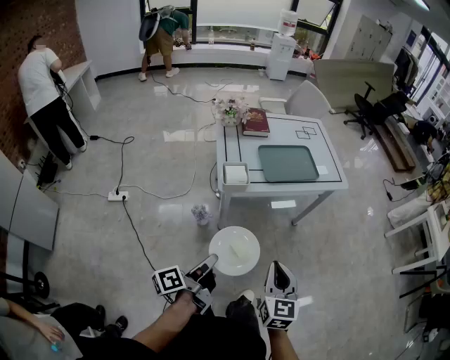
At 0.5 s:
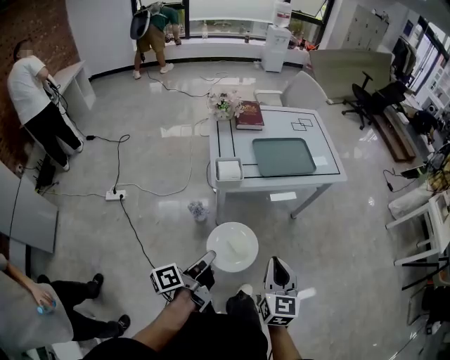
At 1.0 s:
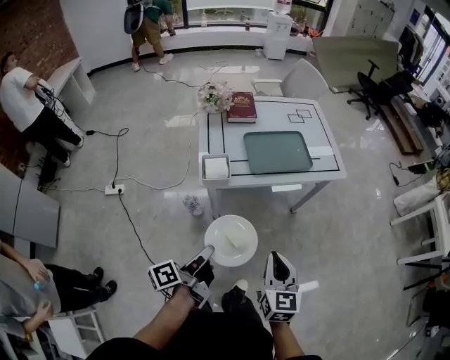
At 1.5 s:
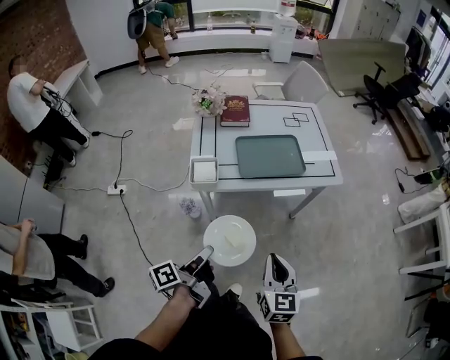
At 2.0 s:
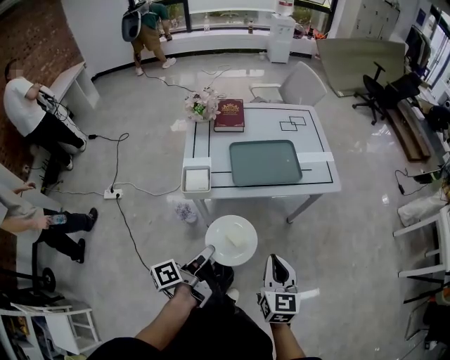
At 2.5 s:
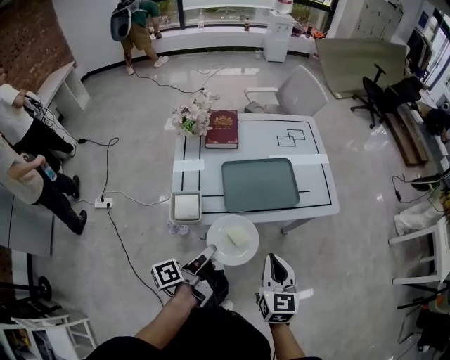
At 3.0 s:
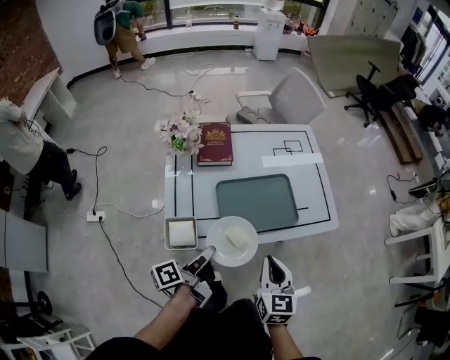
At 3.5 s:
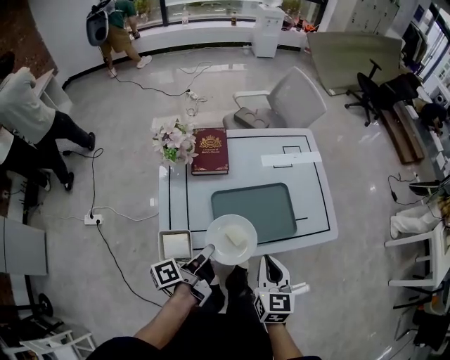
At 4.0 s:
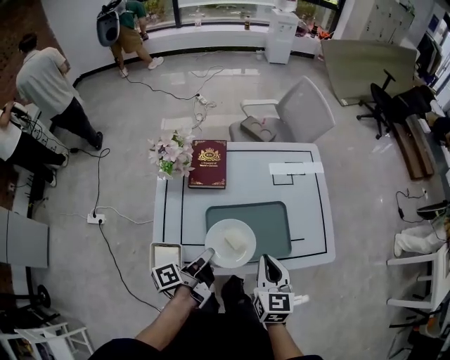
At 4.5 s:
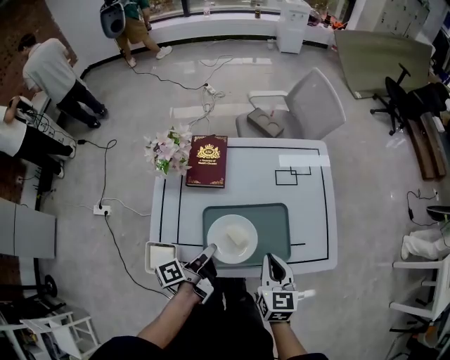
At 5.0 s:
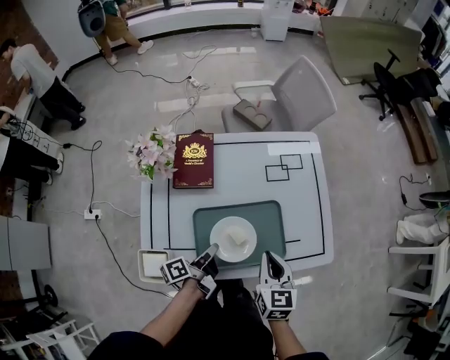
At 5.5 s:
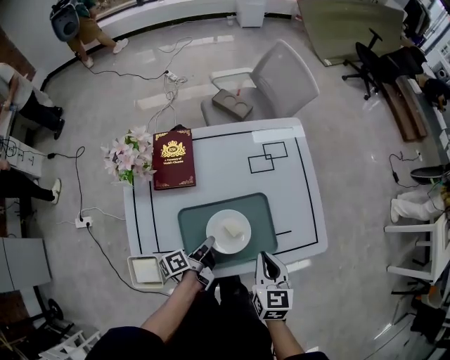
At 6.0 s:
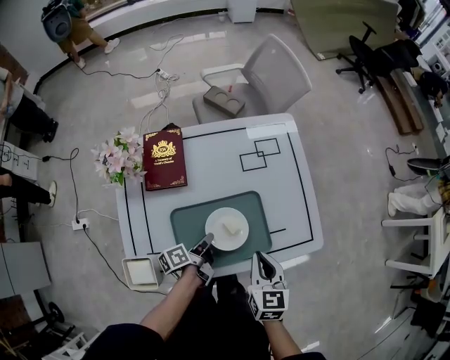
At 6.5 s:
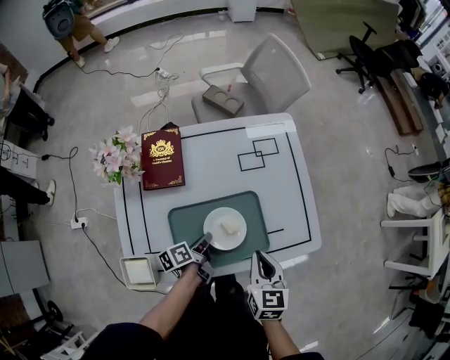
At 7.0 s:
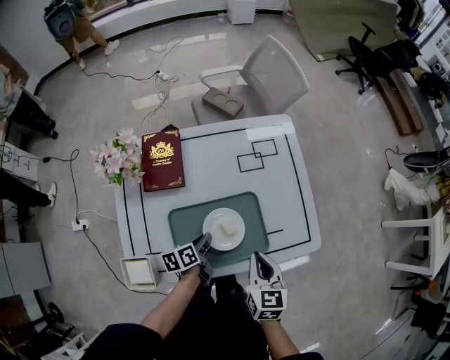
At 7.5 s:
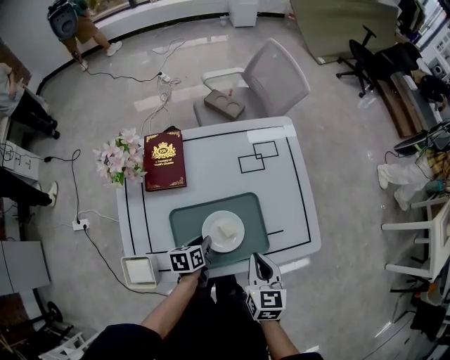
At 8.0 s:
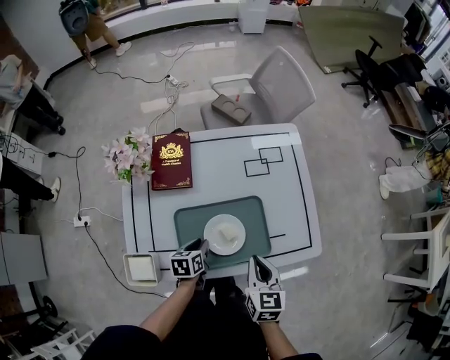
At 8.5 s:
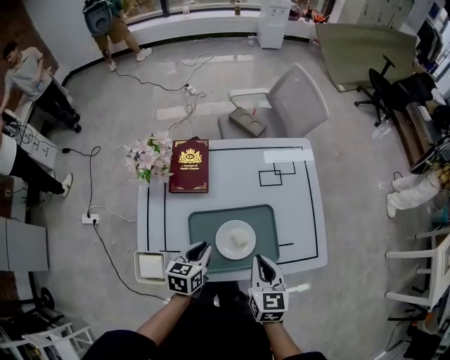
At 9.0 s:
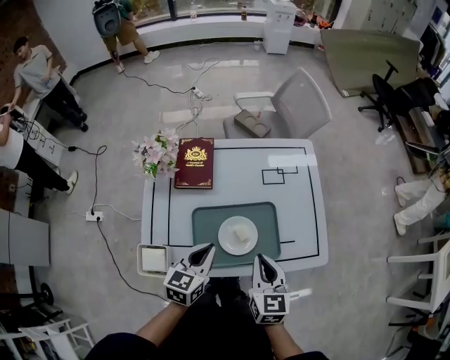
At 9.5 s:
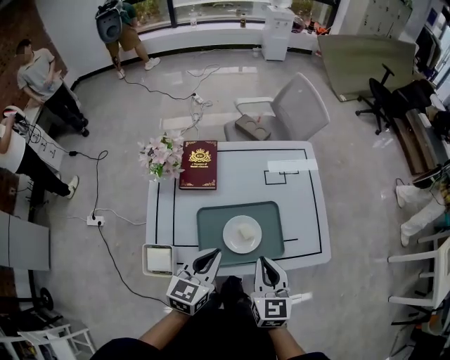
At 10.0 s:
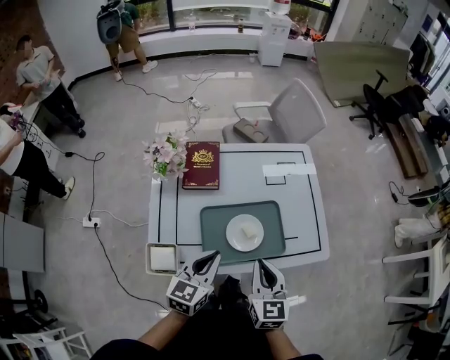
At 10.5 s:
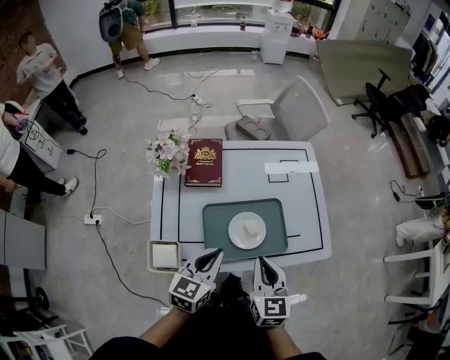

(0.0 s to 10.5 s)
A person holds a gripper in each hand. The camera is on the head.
0.0 s - 2.0 s: The right gripper changes place by some 25 cm.
2.0 s - 4.0 s: The right gripper changes place by approximately 35 cm.
4.0 s - 6.5 s: The right gripper shifts by approximately 10 cm.
6.5 s - 8.5 s: The right gripper changes place by roughly 5 cm.
8.5 s - 10.5 s: The right gripper shifts by about 10 cm.

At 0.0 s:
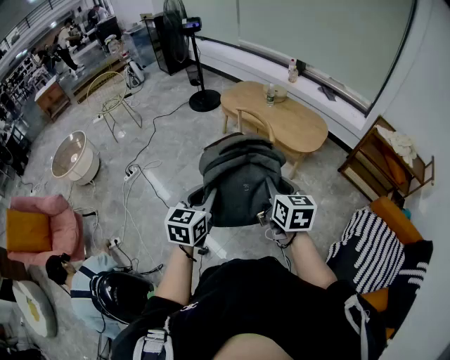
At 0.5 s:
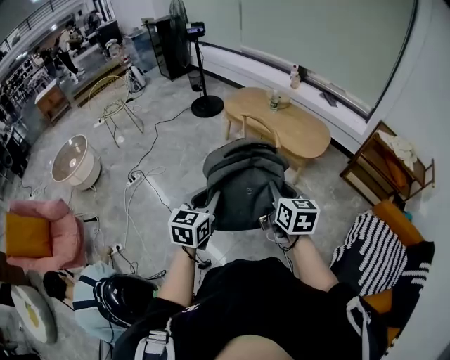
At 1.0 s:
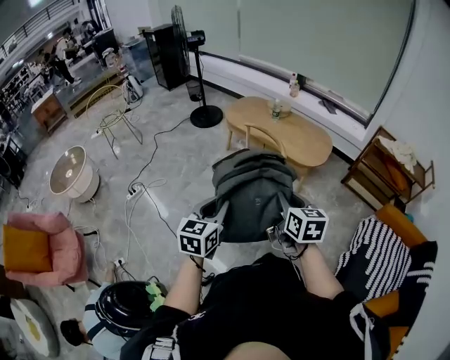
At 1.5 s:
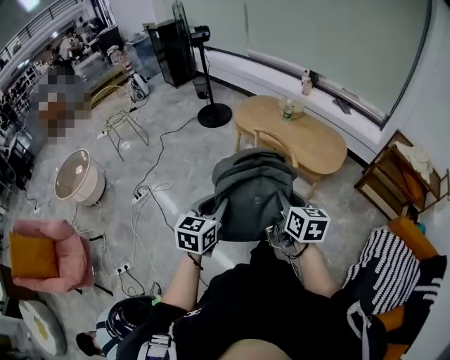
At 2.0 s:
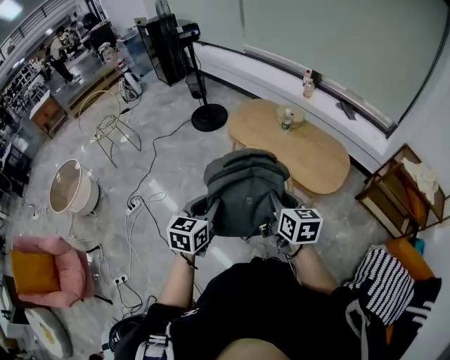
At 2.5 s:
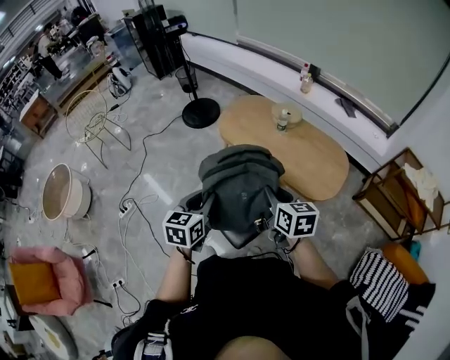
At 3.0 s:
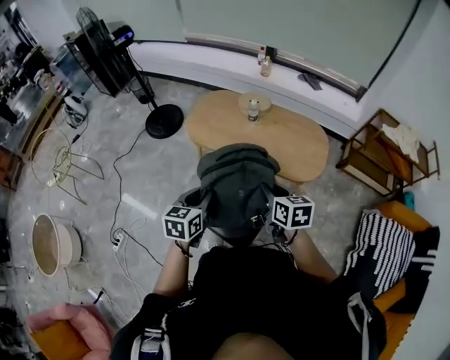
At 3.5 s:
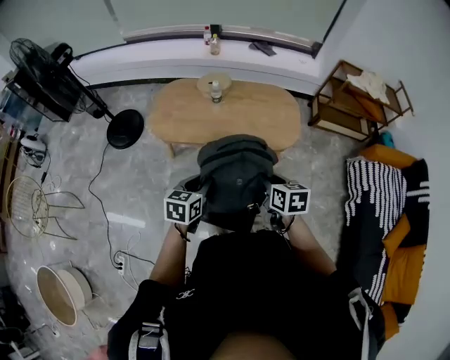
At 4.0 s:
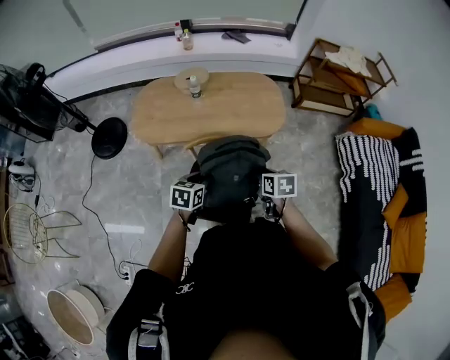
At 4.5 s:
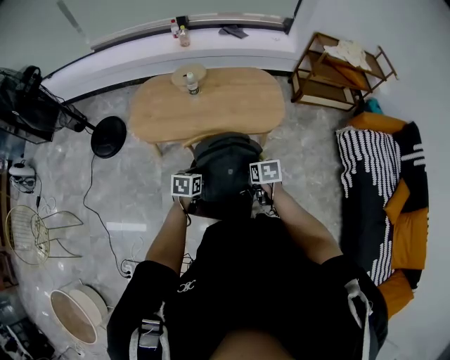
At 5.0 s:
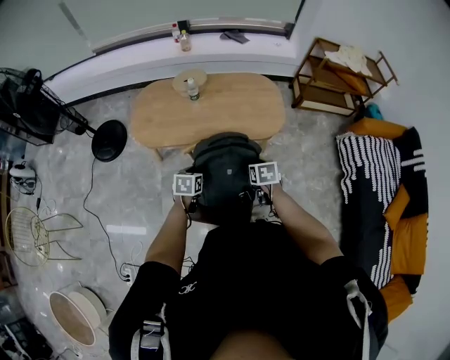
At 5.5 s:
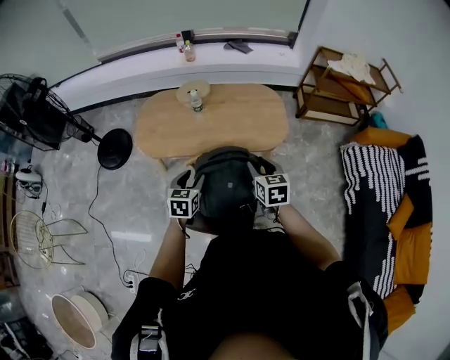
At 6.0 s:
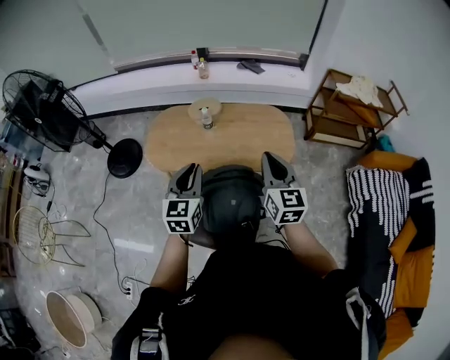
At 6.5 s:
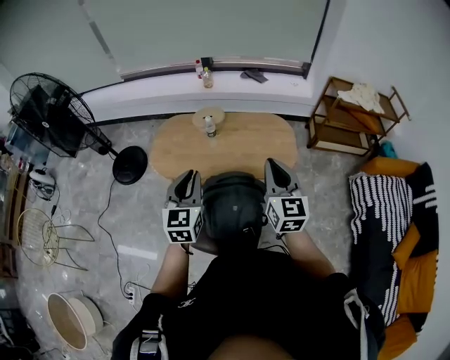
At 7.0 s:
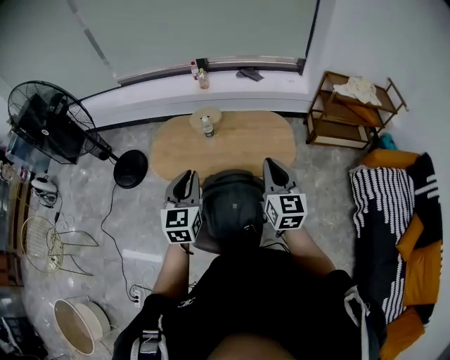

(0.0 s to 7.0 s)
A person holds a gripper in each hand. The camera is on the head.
0.0 s - 2.0 s: The pair of grippers is taken forward, some 40 cm.
2.0 s - 3.5 s: The right gripper moves roughly 25 cm, and changes its angle by some 40 degrees; the left gripper changes place by approximately 35 cm, and rotates about 40 degrees.
3.5 s - 5.0 s: Both grippers move downward and forward, about 15 cm. The right gripper swivels roughly 20 degrees, and opens up.
5.0 s - 7.0 s: The grippers both shift upward by about 30 cm. The right gripper tips its fingers upward by some 50 degrees, and closes up; the left gripper angles its fingers upward, by approximately 40 degrees, and closes.

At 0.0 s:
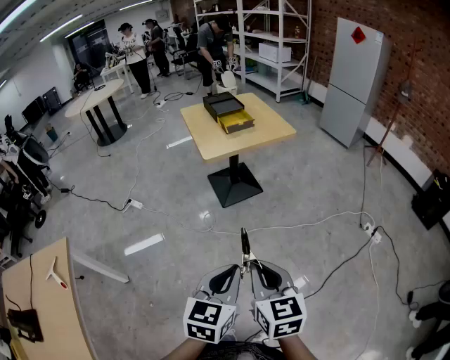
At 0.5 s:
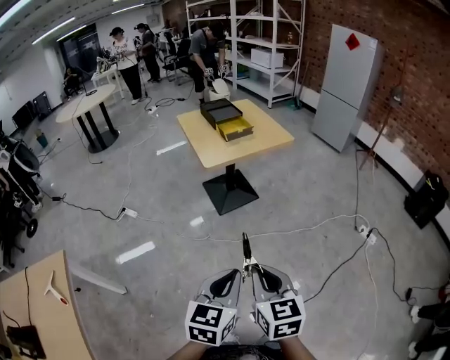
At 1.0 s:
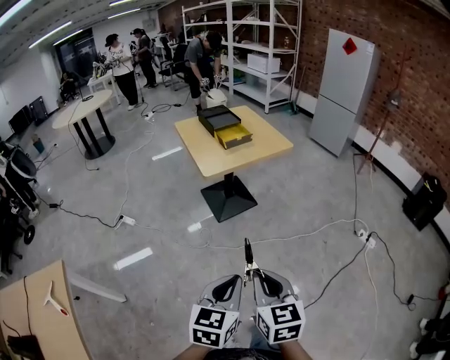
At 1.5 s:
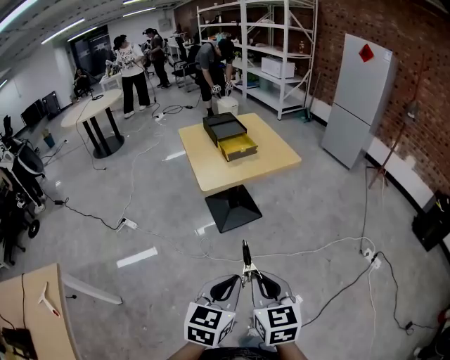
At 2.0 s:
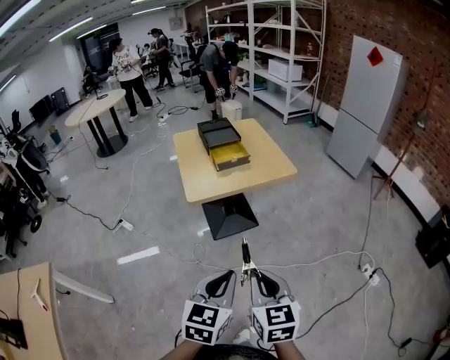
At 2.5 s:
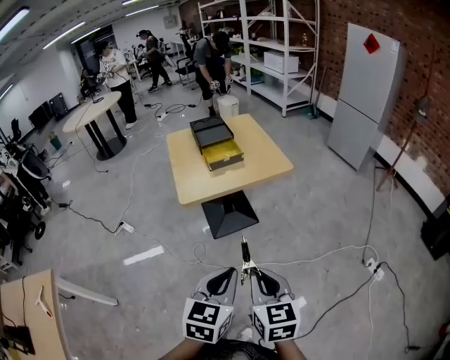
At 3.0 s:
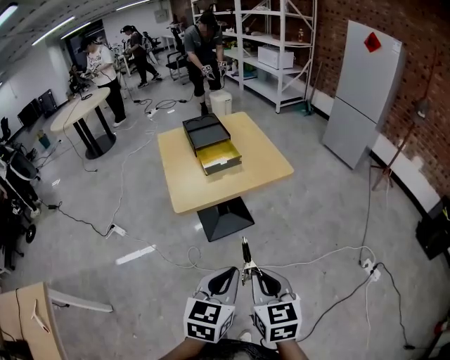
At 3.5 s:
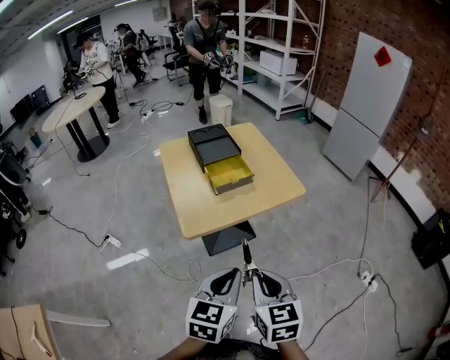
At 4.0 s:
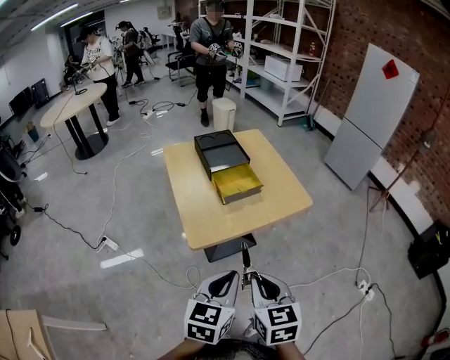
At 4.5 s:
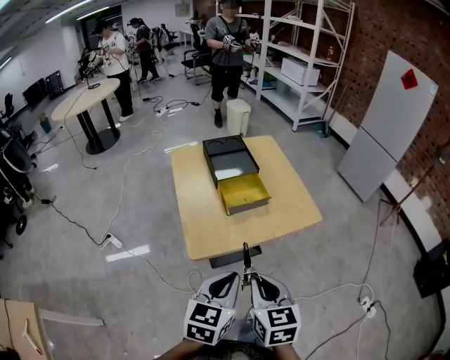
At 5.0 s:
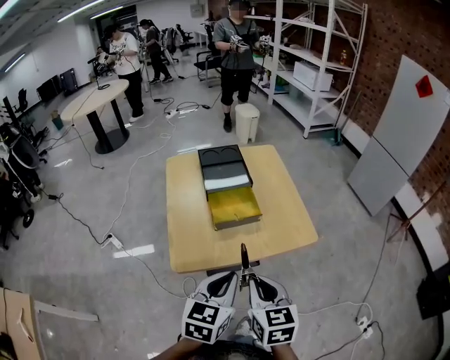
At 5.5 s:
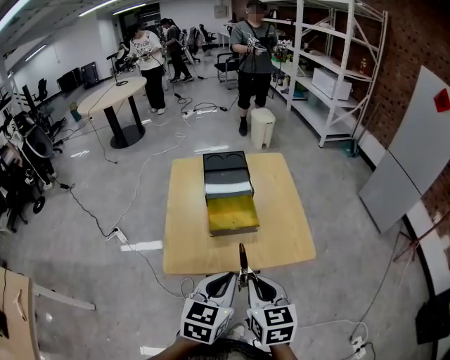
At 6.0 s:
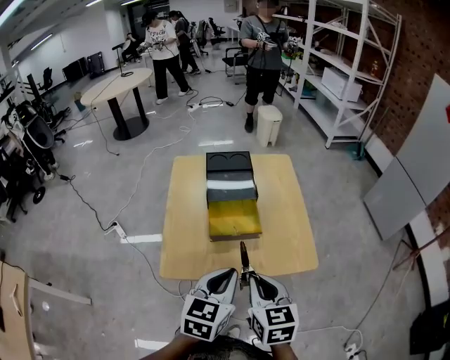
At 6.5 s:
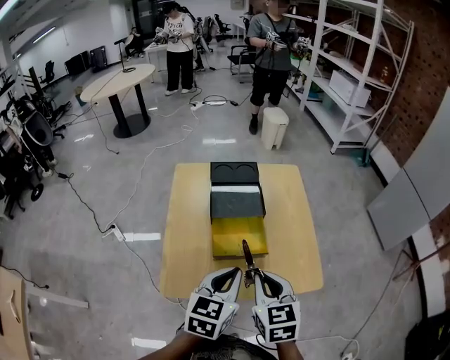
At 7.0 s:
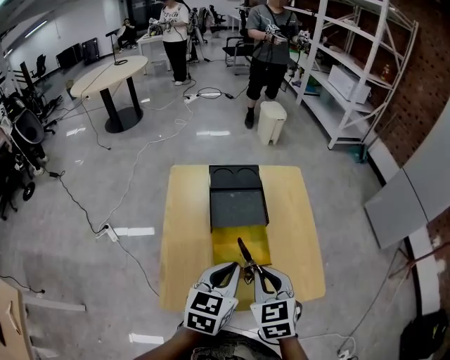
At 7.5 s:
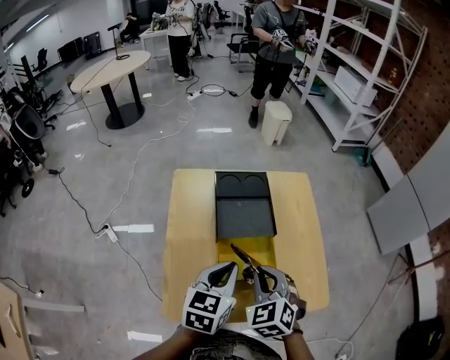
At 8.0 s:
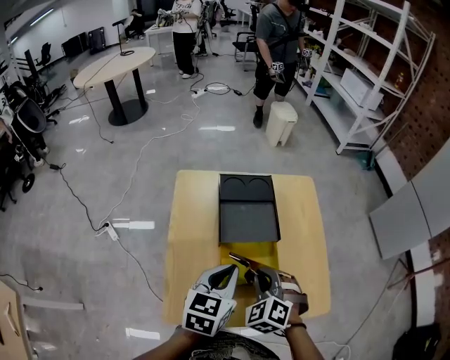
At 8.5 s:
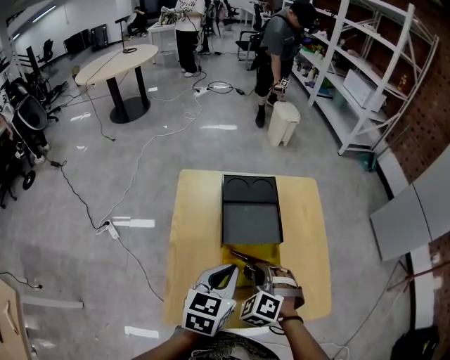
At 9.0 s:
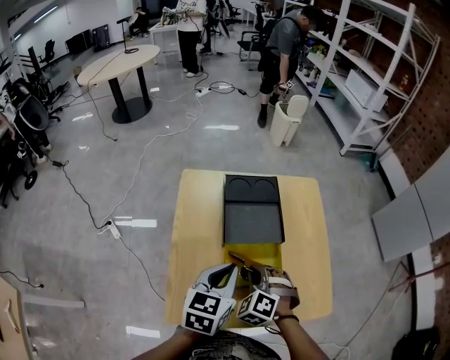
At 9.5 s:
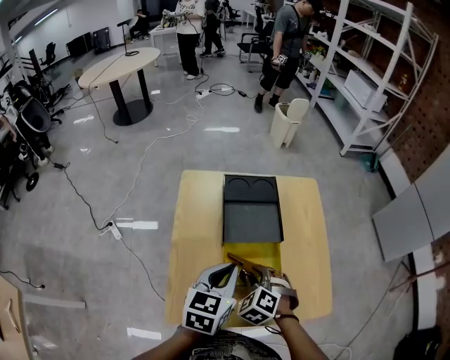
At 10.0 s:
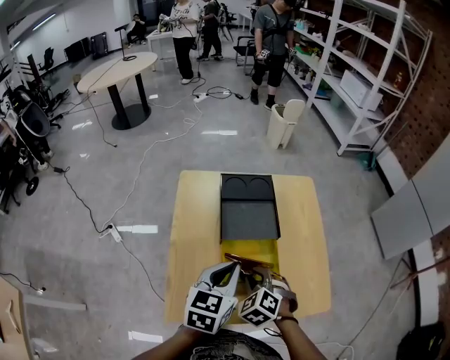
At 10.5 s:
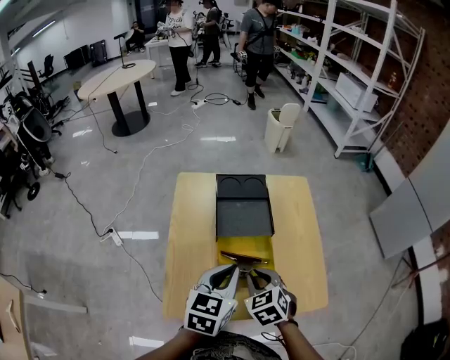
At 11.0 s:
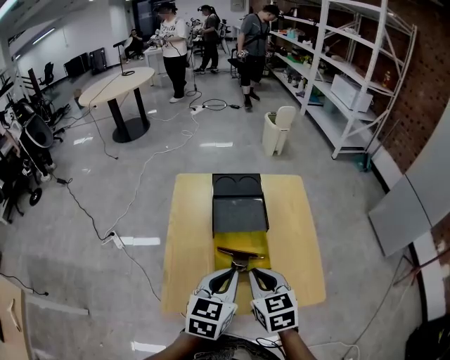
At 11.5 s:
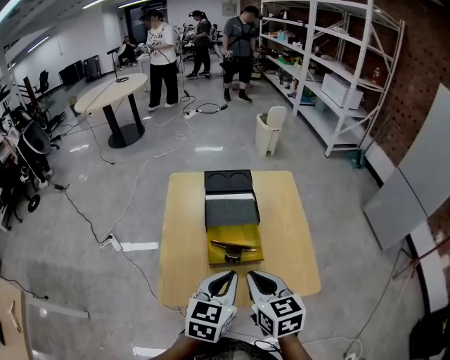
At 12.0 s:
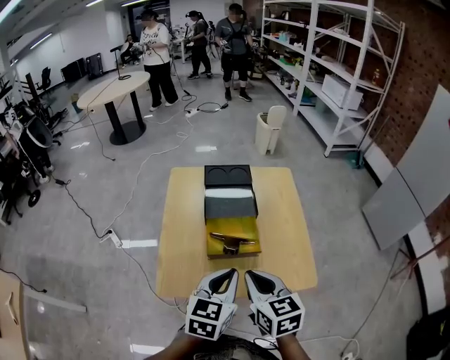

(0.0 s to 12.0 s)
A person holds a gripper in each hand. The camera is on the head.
0.0 s - 2.0 s: The two grippers travel together, forward, approximately 50 cm.
2.0 s - 4.0 s: The two grippers travel together, forward and to the left, roughly 60 cm.
4.0 s - 6.0 s: The two grippers travel together, forward and to the right, about 60 cm.
6.0 s - 8.0 s: Both grippers are carried forward and to the left, approximately 60 cm. The right gripper rotates around the line of its fingers by approximately 60 degrees, counterclockwise from behind.
8.0 s - 10.0 s: The left gripper changes place by approximately 5 cm. Meanwhile the right gripper shifts about 5 cm backward, and opens up.
10.0 s - 12.0 s: The right gripper travels backward, to the right and upward by some 40 cm, rotates around the line of its fingers by approximately 50 degrees, clockwise from behind, and closes, while the left gripper shifts some 40 cm backward and to the right.
